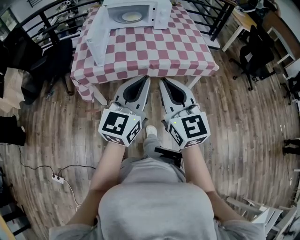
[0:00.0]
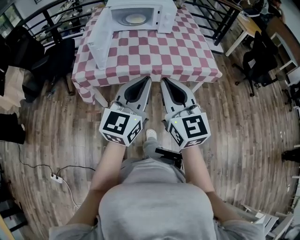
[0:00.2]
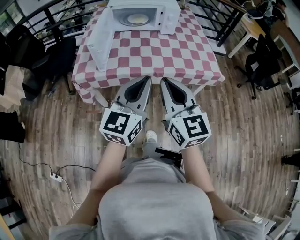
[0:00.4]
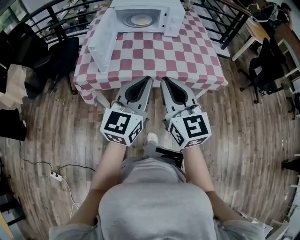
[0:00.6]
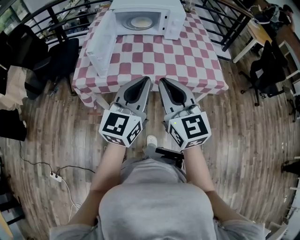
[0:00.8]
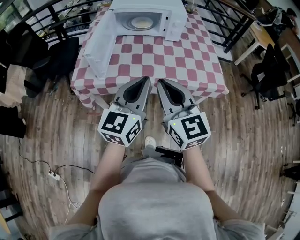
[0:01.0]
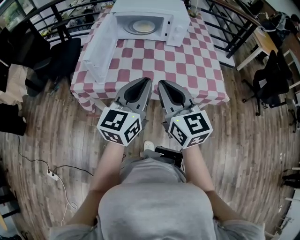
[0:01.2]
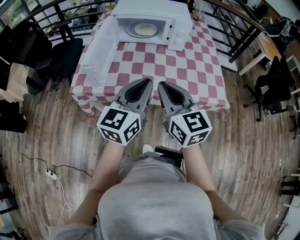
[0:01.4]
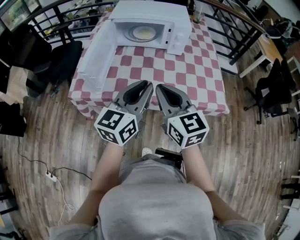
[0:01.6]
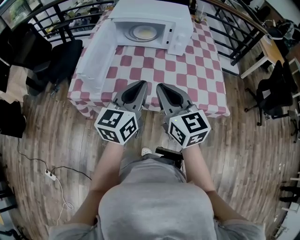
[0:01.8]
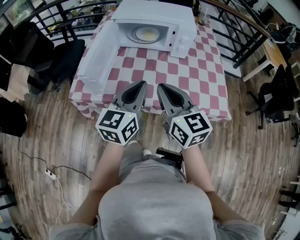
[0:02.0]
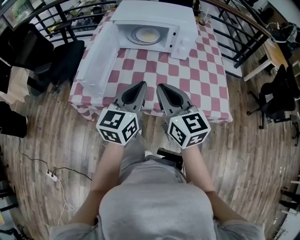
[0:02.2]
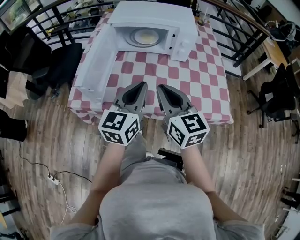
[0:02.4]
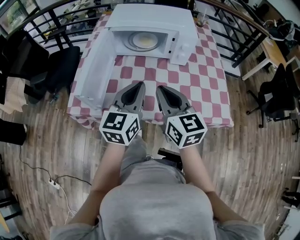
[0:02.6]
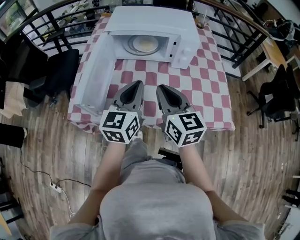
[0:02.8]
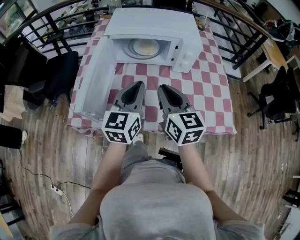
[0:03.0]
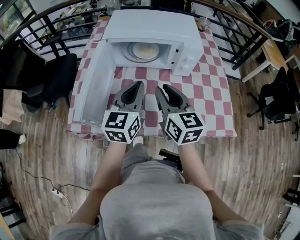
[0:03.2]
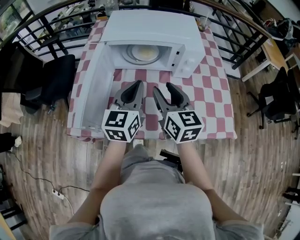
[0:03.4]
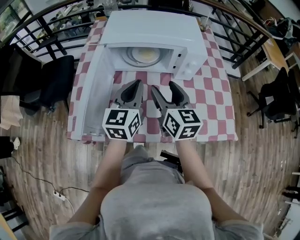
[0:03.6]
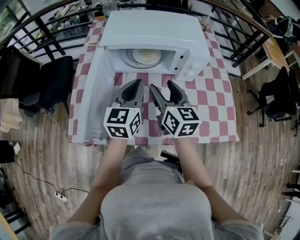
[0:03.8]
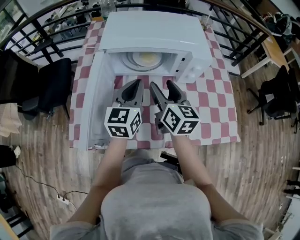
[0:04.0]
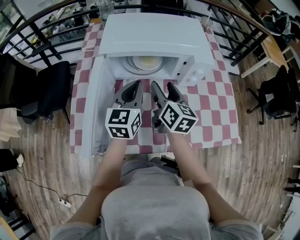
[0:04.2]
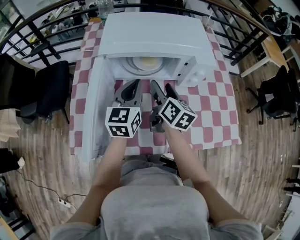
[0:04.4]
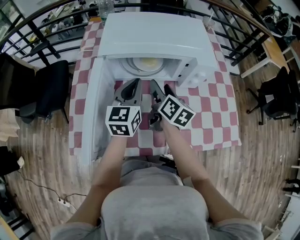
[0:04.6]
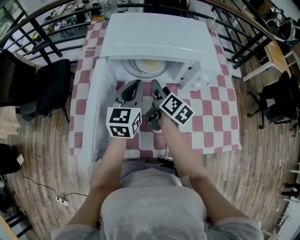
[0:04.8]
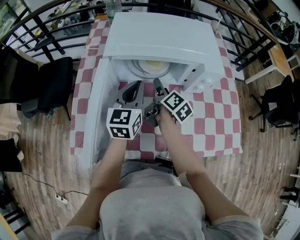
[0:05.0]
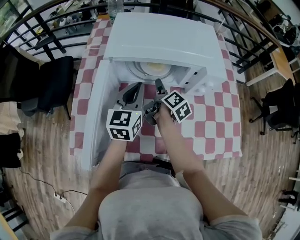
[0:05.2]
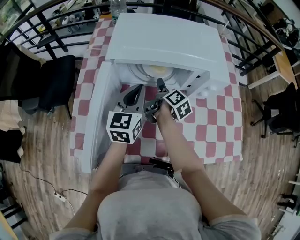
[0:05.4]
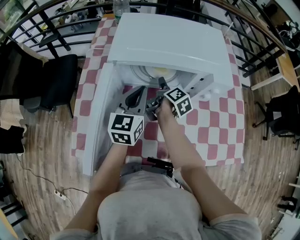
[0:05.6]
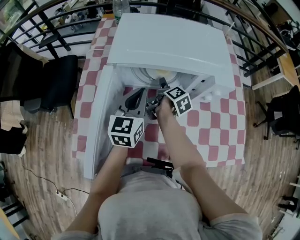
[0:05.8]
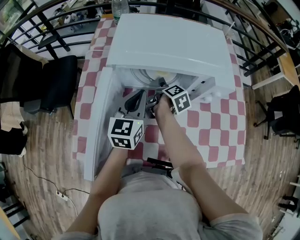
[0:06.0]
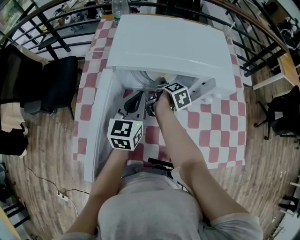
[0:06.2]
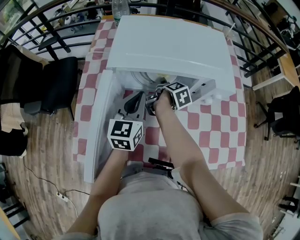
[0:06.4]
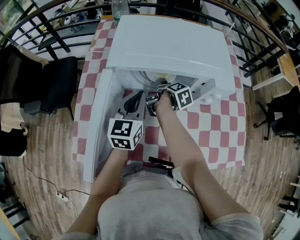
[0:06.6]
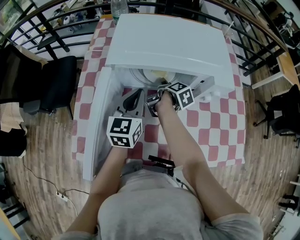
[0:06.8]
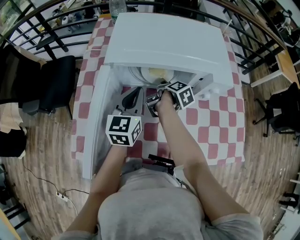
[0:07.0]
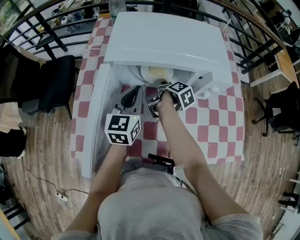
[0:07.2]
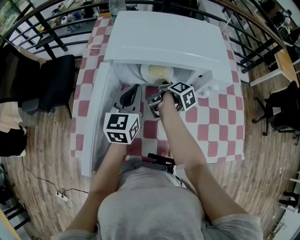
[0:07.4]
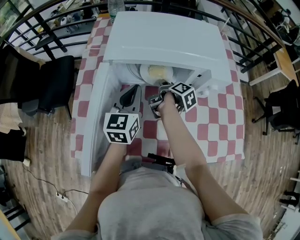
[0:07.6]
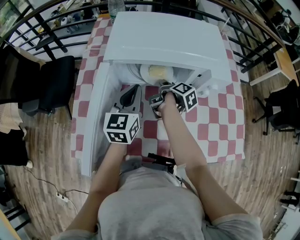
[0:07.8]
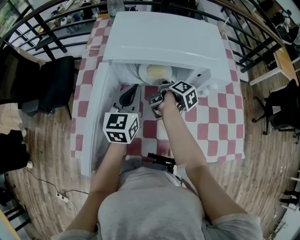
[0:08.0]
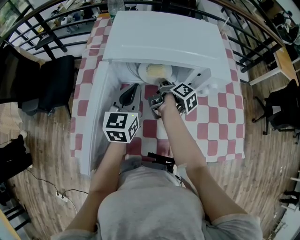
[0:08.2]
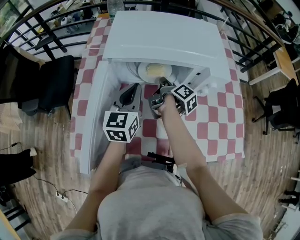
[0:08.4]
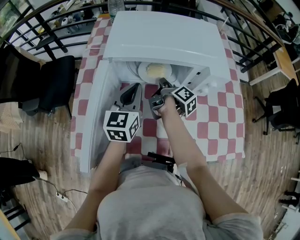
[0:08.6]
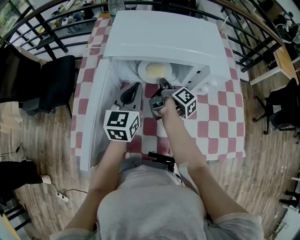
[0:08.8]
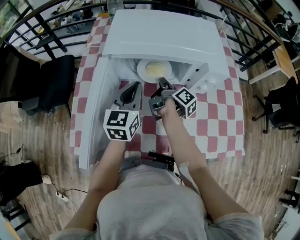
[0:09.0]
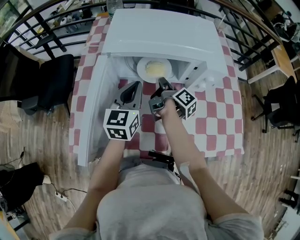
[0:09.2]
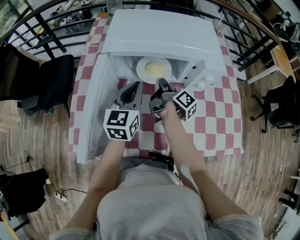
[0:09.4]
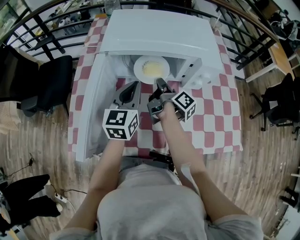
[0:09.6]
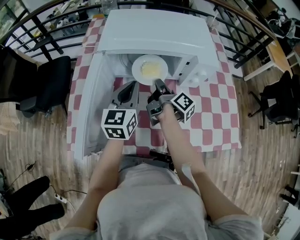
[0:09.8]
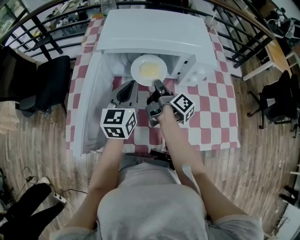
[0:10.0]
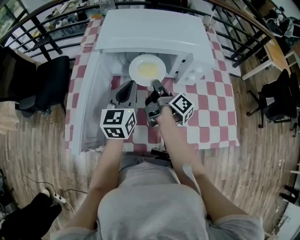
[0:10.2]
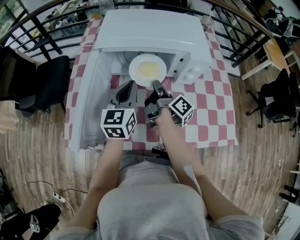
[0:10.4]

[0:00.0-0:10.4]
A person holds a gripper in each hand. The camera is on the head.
0.0 to 1.4 s: The grippers both shift forward by about 20 cm.
1.4 to 3.0 s: The two grippers go approximately 20 cm forward.
3.0 to 4.4 s: The right gripper travels forward and downward by about 20 cm, changes its angle by some 30 degrees, and opens its fingers. The left gripper travels forward by some 15 cm.
4.4 to 6.0 s: The left gripper changes place by roughly 5 cm; the right gripper heads downward and forward, covering about 15 cm, and turns by roughly 40 degrees.
6.0 to 7.4 s: The right gripper closes up.
7.4 to 9.0 s: The right gripper turns by approximately 20 degrees, and closes.
9.0 to 10.4 s: The right gripper travels backward and upward by roughly 10 cm; the left gripper changes place by about 5 cm.

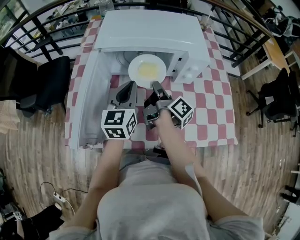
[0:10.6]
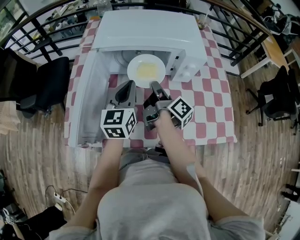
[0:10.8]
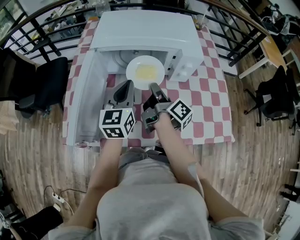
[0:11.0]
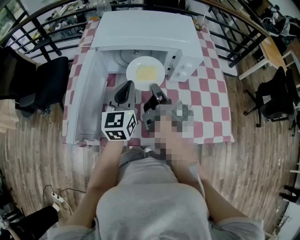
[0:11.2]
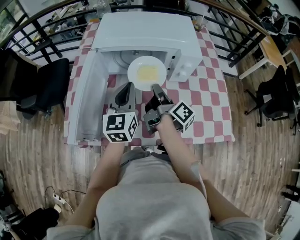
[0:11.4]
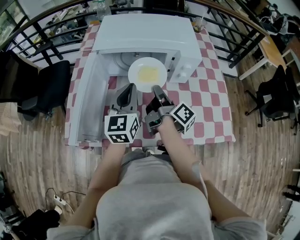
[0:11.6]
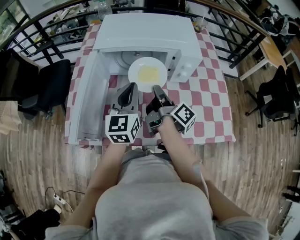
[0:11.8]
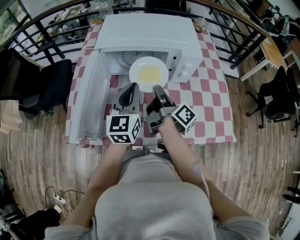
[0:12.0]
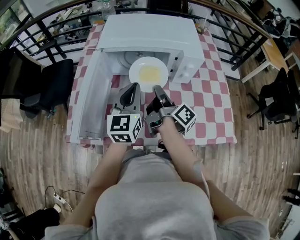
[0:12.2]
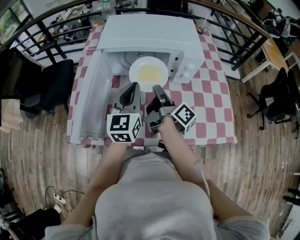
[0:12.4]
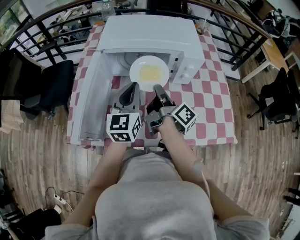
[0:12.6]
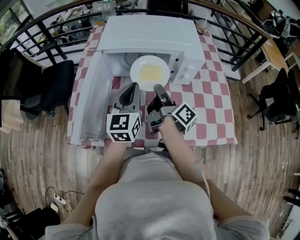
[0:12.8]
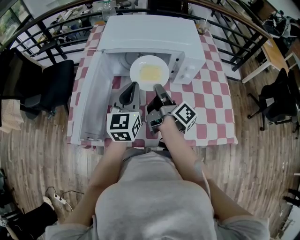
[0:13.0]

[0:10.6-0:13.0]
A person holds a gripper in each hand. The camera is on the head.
10.6 to 11.8 s: The right gripper moves about 5 cm.
11.8 to 13.0 s: The two grippers keep their place.

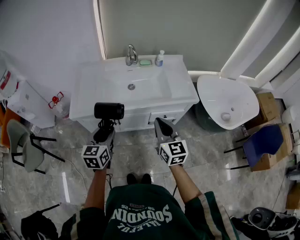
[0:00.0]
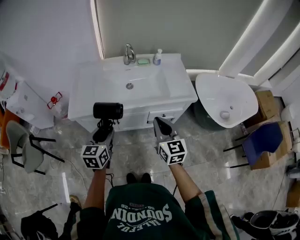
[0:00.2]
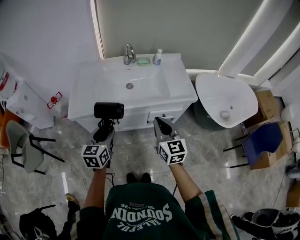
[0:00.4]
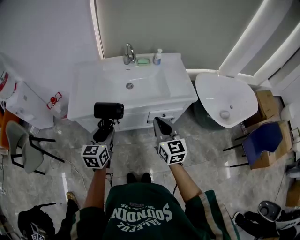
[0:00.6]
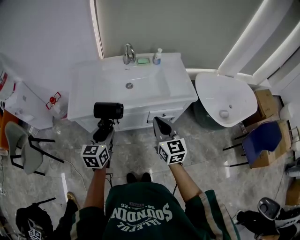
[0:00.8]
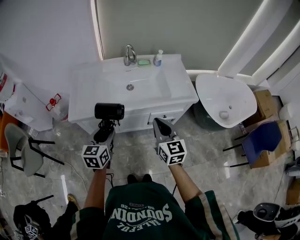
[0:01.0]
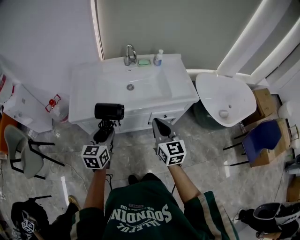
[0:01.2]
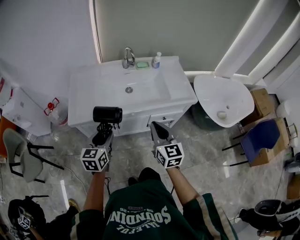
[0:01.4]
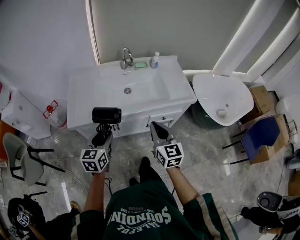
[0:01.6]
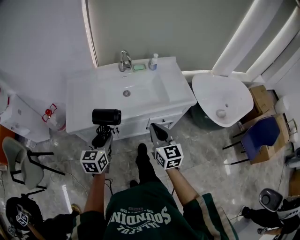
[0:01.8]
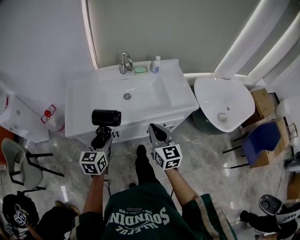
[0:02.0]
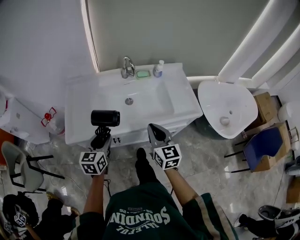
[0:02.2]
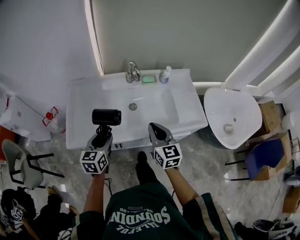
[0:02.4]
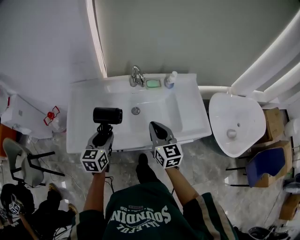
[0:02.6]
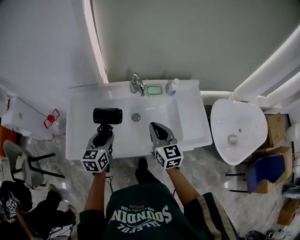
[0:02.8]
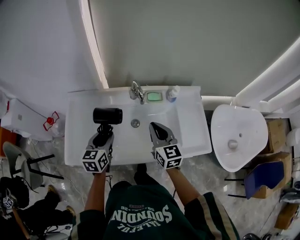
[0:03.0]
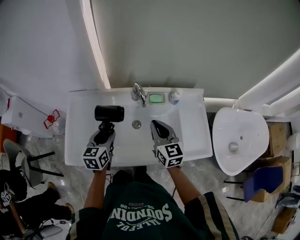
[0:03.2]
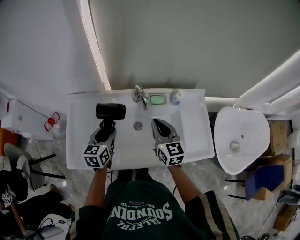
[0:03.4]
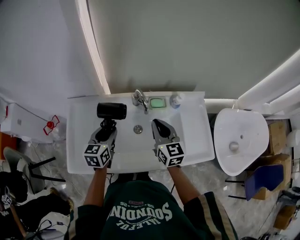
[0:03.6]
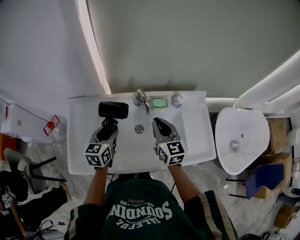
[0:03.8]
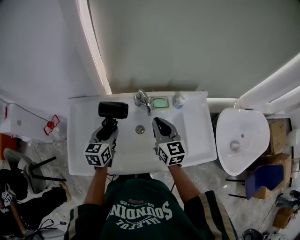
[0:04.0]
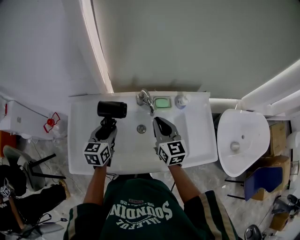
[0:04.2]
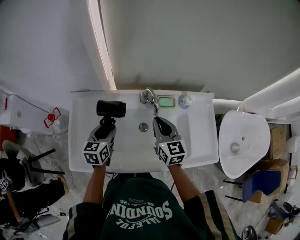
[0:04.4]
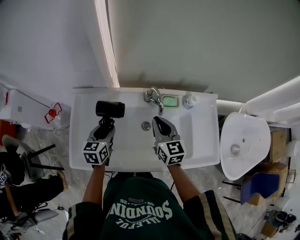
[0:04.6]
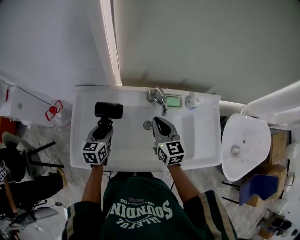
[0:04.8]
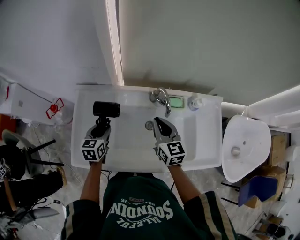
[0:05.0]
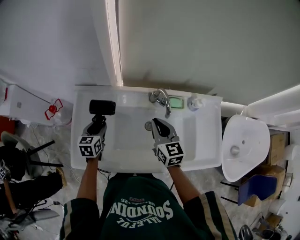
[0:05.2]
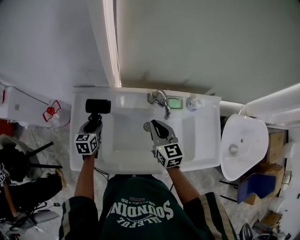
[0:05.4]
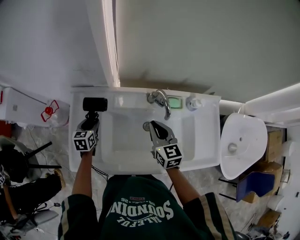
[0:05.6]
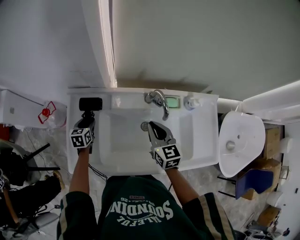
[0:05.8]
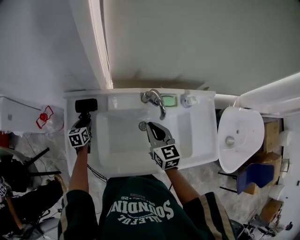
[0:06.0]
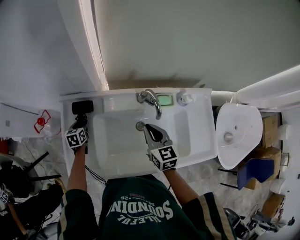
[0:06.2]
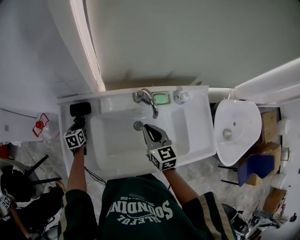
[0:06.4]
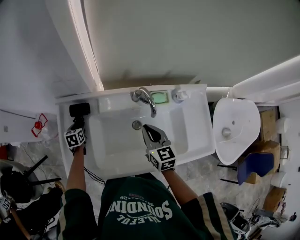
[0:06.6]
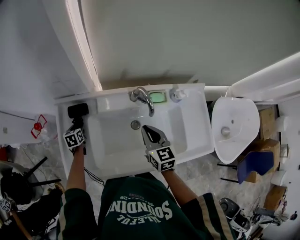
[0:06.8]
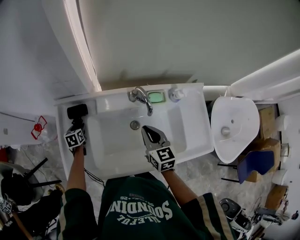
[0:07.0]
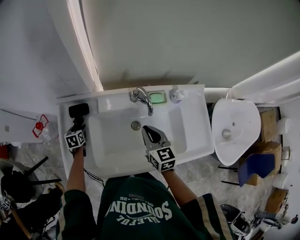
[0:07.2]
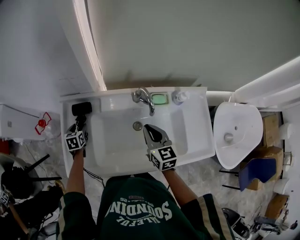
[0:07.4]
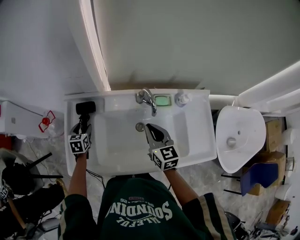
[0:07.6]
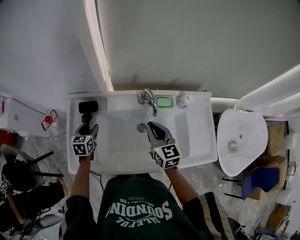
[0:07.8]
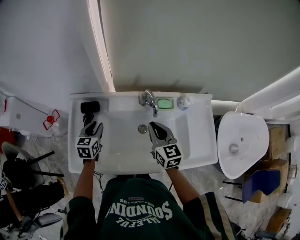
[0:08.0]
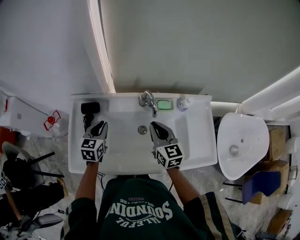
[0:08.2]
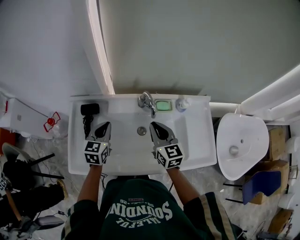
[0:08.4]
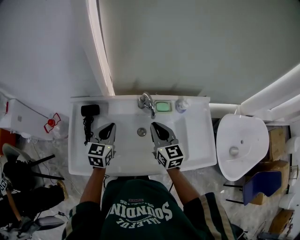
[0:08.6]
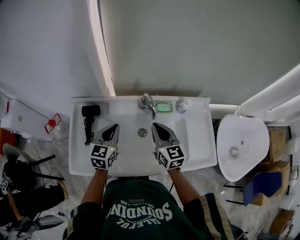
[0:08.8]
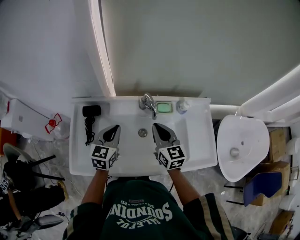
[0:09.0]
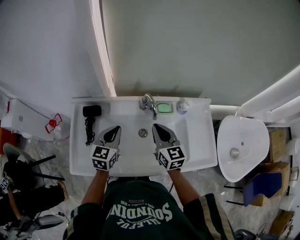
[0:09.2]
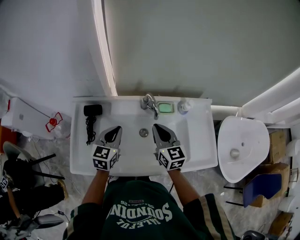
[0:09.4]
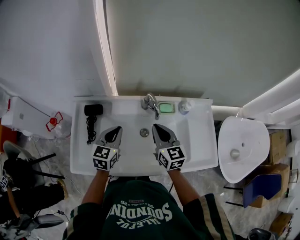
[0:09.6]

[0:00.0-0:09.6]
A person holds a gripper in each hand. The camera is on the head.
0.0 to 1.6 s: The grippers move only a little.
1.6 to 3.2 s: The two grippers go roughly 35 cm forward.
3.2 to 4.8 s: The right gripper moves to the left and forward, roughly 10 cm. The left gripper shifts about 15 cm to the left, downward and forward.
4.8 to 6.4 s: The left gripper is displaced downward, to the left and forward by roughly 20 cm.
6.4 to 8.0 s: The left gripper goes approximately 20 cm upward, to the right and backward. The right gripper shifts by about 5 cm.
8.0 to 9.6 s: The left gripper goes about 15 cm to the right and upward, and closes.

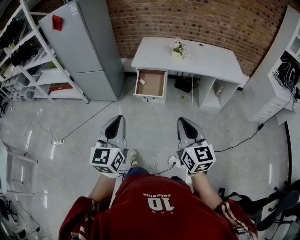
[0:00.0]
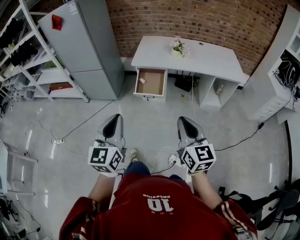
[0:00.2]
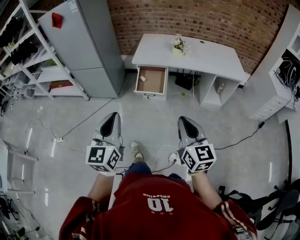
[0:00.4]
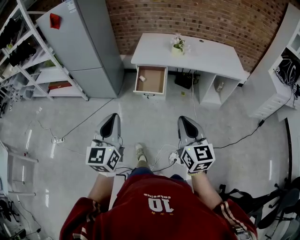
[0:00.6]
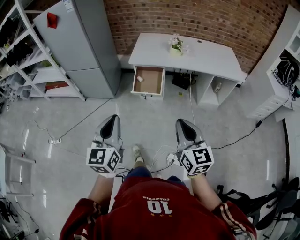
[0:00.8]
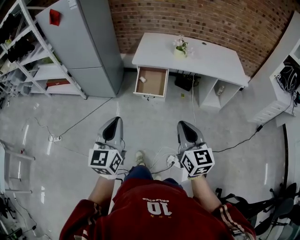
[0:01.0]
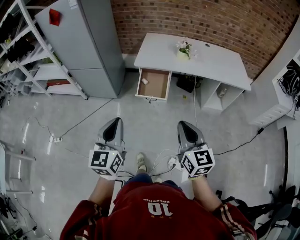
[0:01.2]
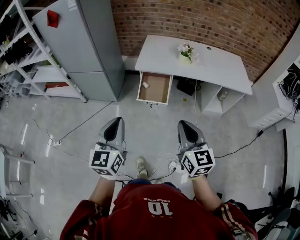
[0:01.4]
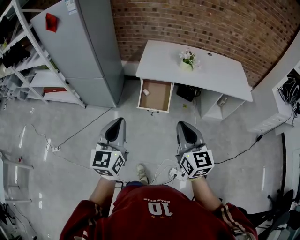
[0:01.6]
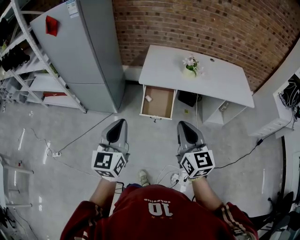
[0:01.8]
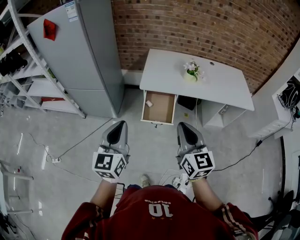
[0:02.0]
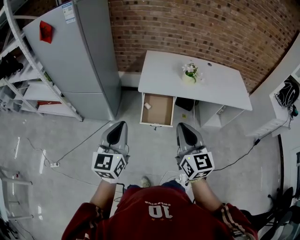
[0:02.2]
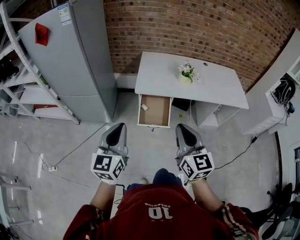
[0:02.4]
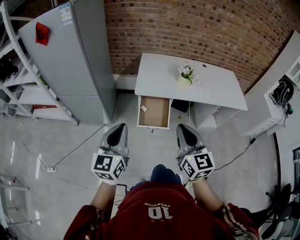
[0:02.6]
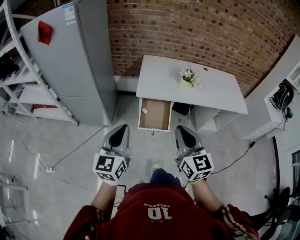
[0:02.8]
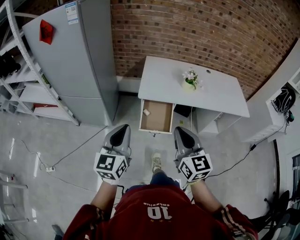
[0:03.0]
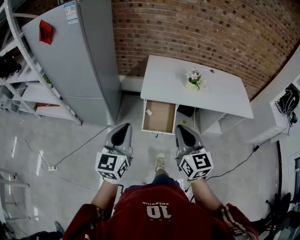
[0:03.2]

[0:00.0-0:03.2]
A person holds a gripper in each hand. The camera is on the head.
0.0 to 1.6 s: The grippers both shift forward and to the left by some 20 cm.
1.6 to 3.2 s: The grippers both shift forward and to the left by some 15 cm.
